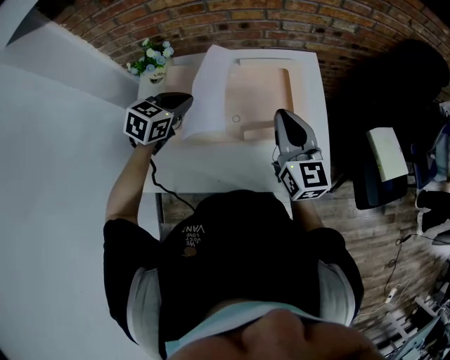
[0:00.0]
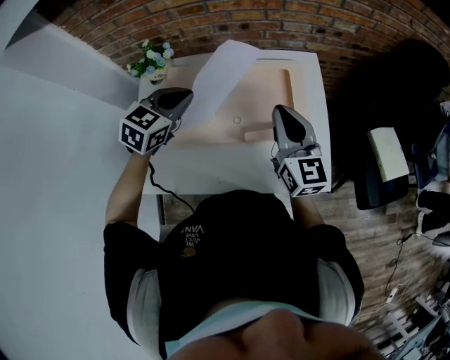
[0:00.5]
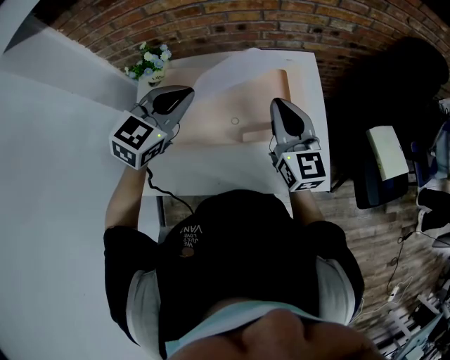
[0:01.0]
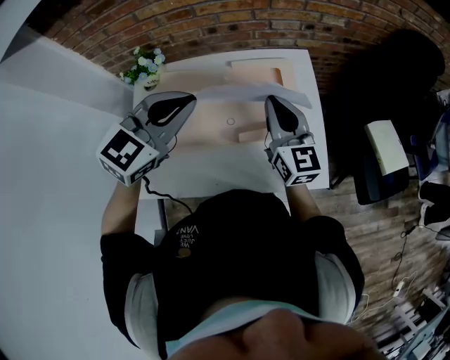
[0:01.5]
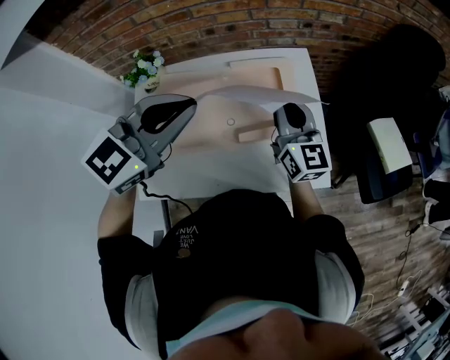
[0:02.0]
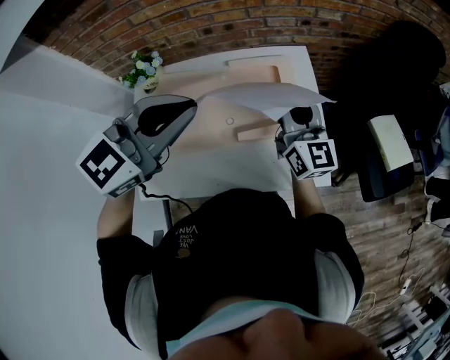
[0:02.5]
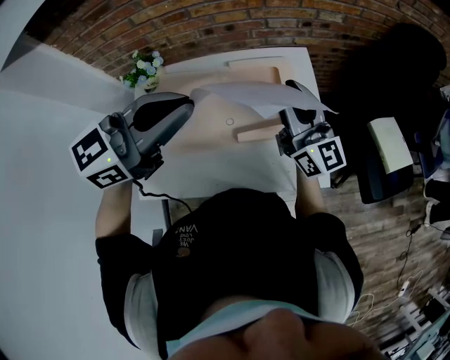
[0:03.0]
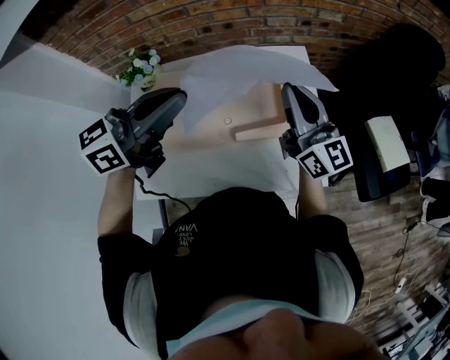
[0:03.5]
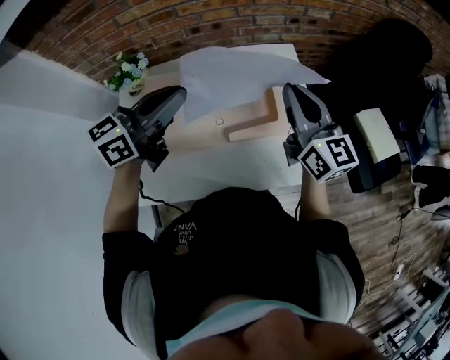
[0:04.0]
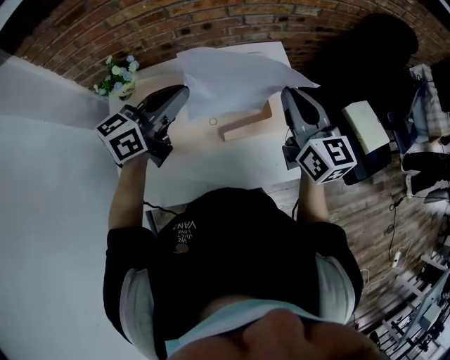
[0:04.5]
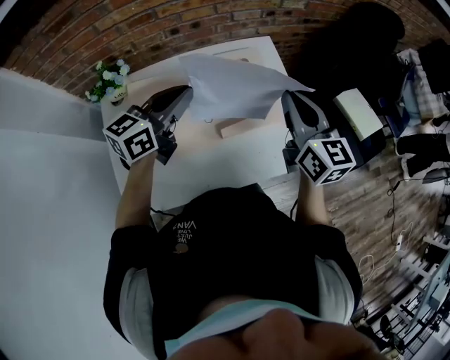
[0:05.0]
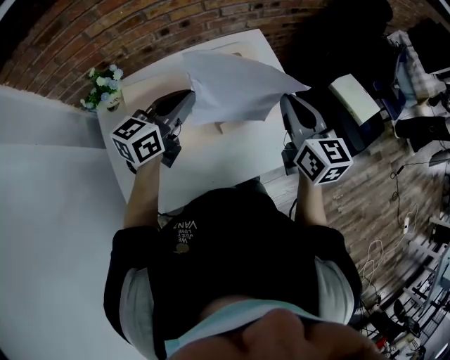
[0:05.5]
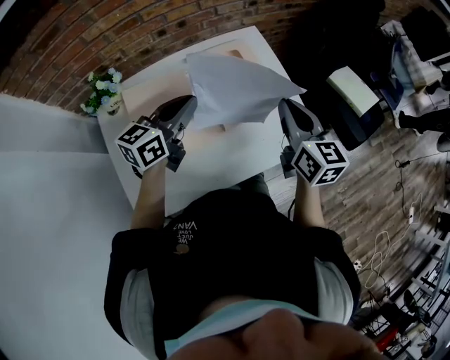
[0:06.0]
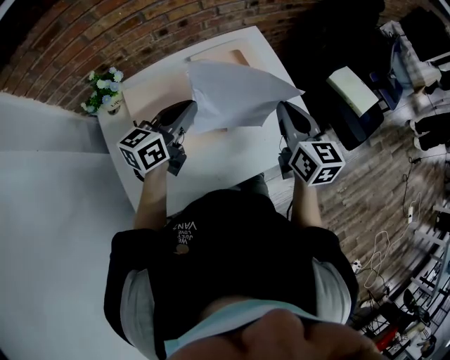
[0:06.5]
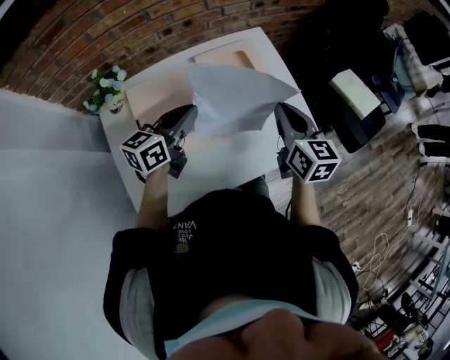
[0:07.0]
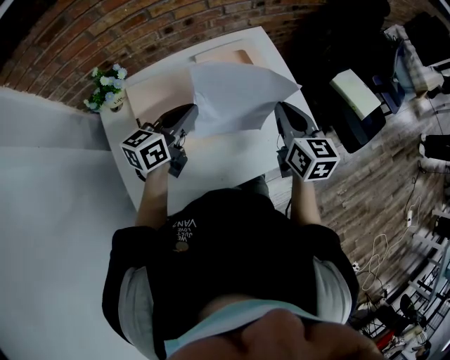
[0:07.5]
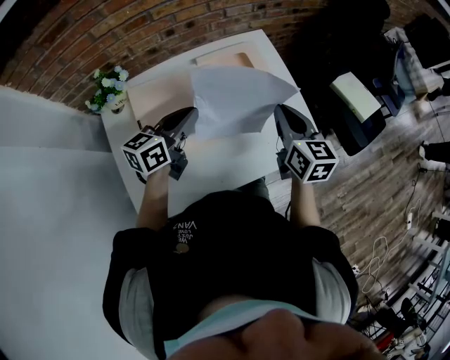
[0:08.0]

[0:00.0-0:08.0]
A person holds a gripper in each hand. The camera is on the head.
0:00.0 to 0:02.0: The right gripper changes place by about 5 cm; the left gripper travels upward and to the right by about 25 cm, and swivels roughly 30 degrees.
0:02.0 to 0:04.0: The right gripper shifts by approximately 5 cm, while the left gripper moves about 10 cm, and turns by roughly 40 degrees.
0:04.0 to 0:06.0: The right gripper moves backward and downward, about 10 cm, and changes its angle by some 30 degrees. Meanwhile the left gripper is displaced downward by roughly 10 cm.
0:06.0 to 0:08.0: The grippers make only small movements.

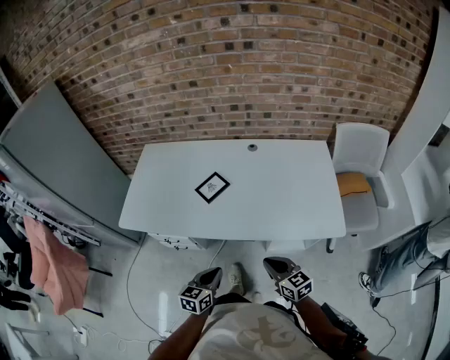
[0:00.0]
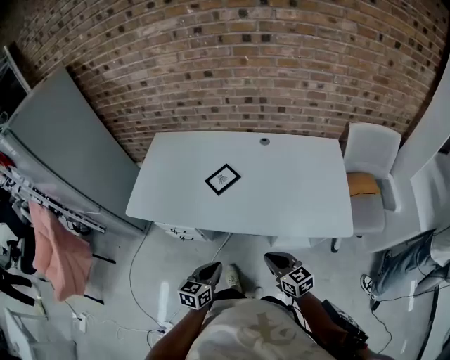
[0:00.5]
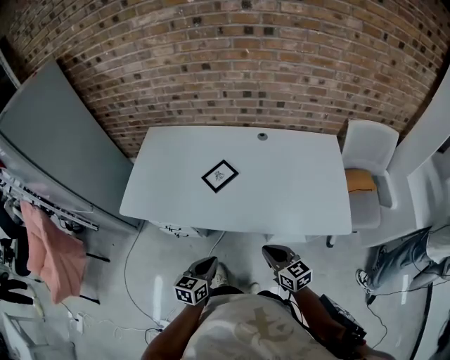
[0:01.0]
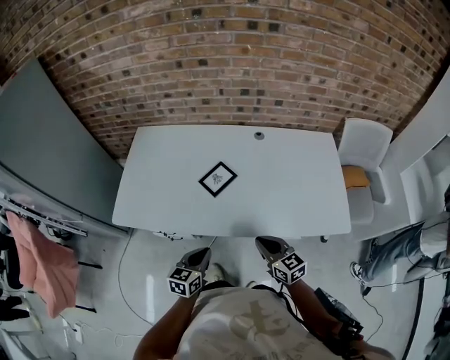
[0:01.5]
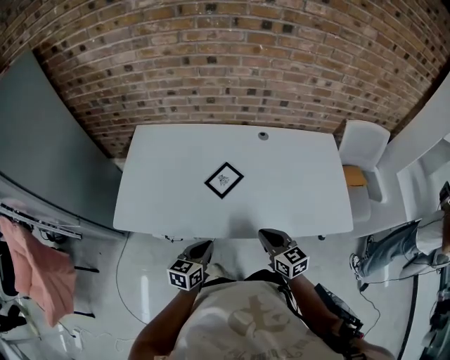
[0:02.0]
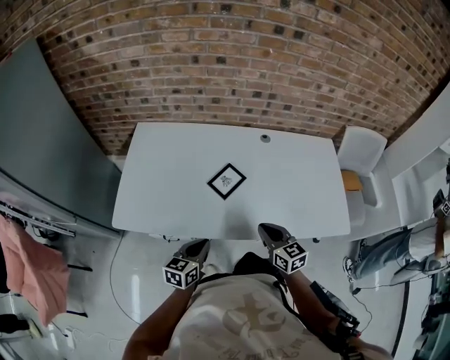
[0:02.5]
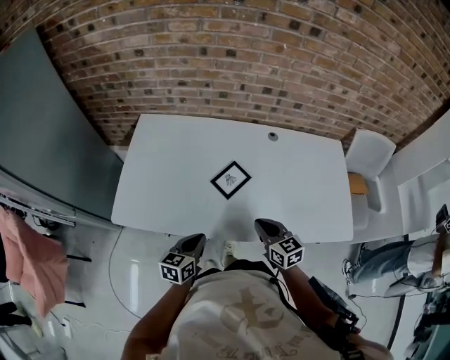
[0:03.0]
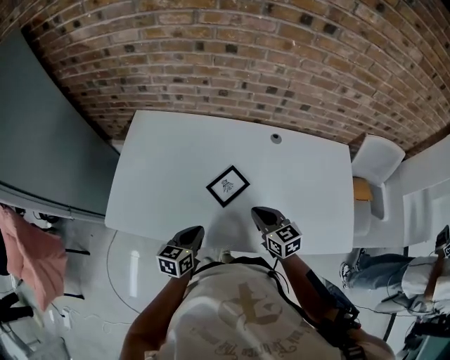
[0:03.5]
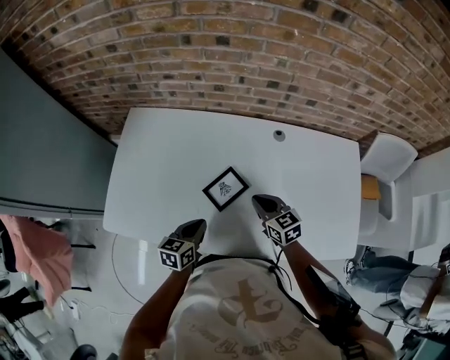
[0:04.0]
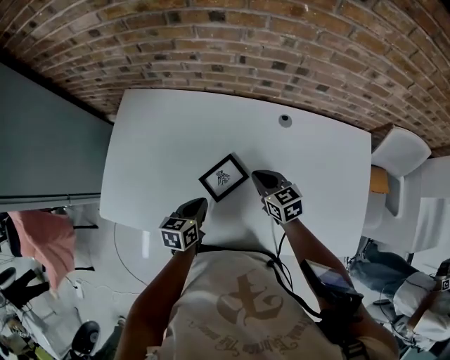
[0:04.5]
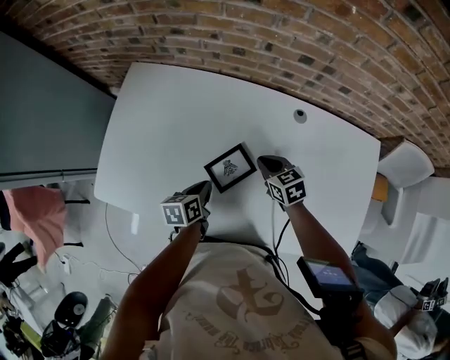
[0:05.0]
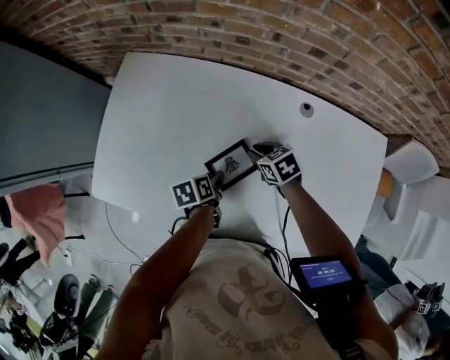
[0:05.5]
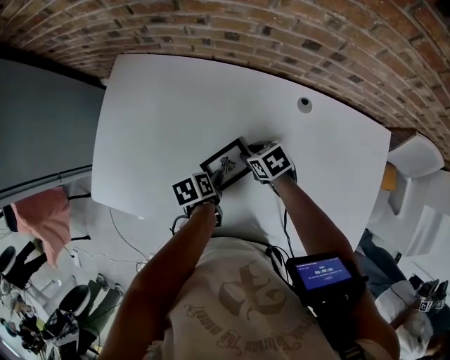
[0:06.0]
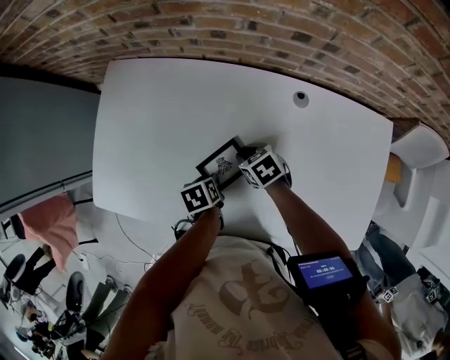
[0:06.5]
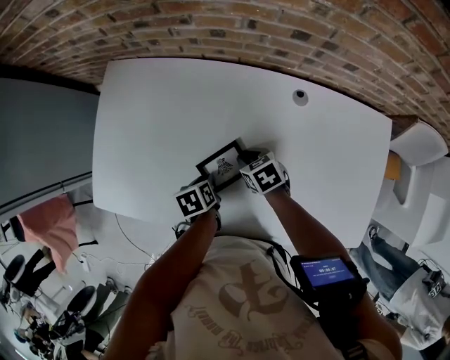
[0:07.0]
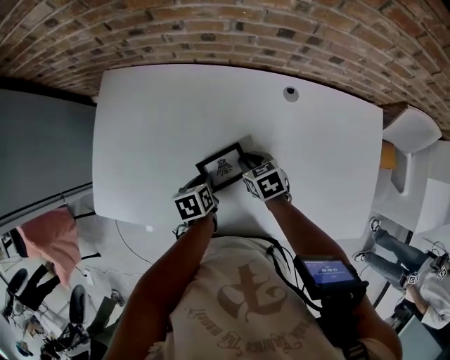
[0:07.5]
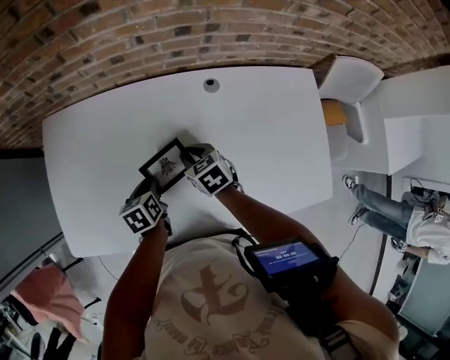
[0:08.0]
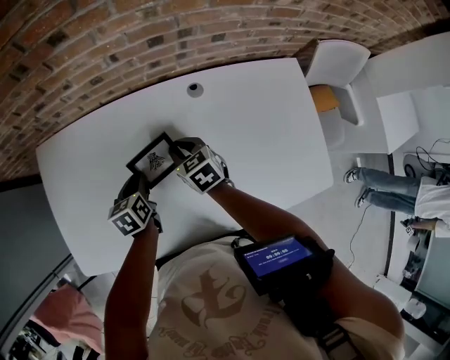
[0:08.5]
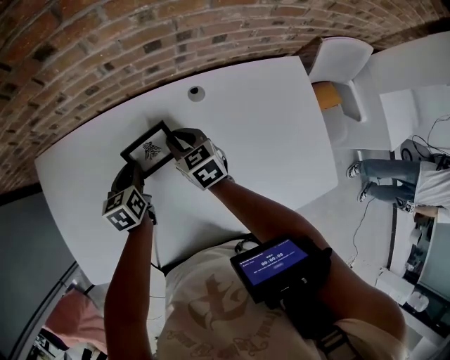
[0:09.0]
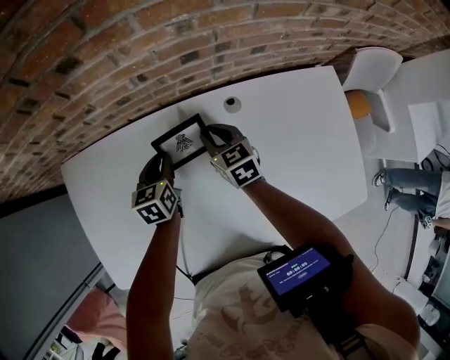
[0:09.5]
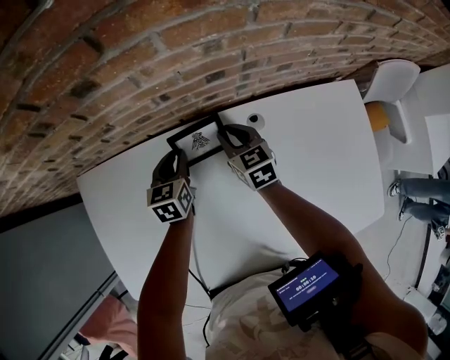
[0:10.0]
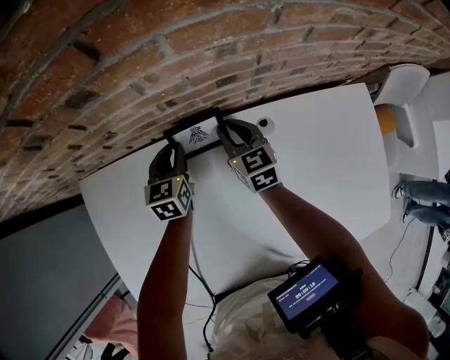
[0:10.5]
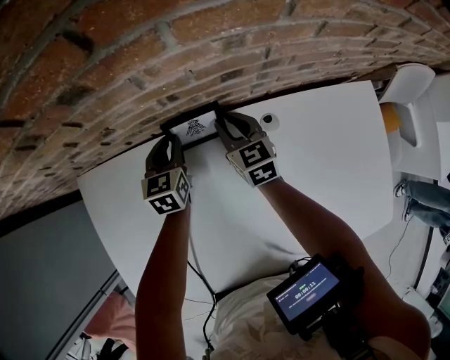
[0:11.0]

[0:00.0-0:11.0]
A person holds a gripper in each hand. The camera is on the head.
0:00.0 to 0:02.0: The grippers both shift forward and to the left by roughly 20 cm.
0:02.0 to 0:03.5: The two grippers go some 15 cm forward.
0:03.5 to 0:05.5: The left gripper heads forward, downward and to the right, covering roughly 20 cm, twists some 40 degrees counterclockwise, seen from behind, and opens up. Meanwhile the right gripper shifts roughly 20 cm forward and downward, and changes its angle by some 40 degrees.
0:05.5 to 0:07.5: The left gripper closes its fingers.
0:07.5 to 0:09.0: Both grippers move forward and upward, about 15 cm. The left gripper swivels about 30 degrees. The right gripper rotates approximately 30 degrees.
0:09.0 to 0:11.0: Both grippers move forward, roughly 20 cm.

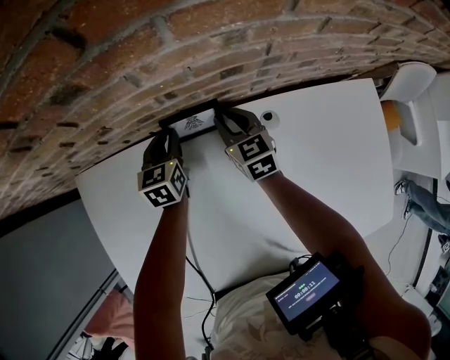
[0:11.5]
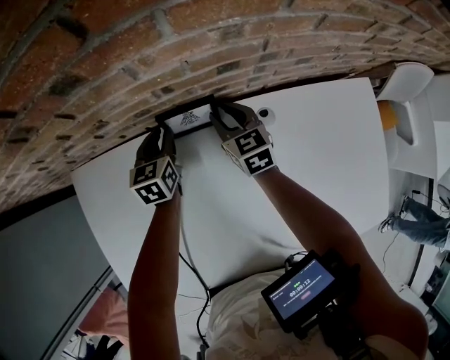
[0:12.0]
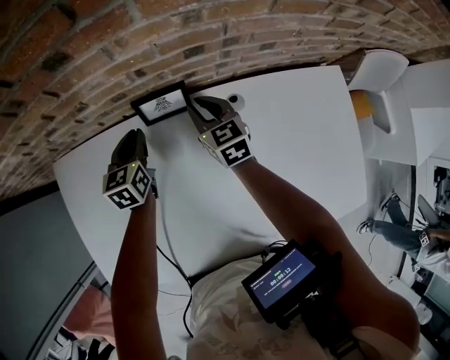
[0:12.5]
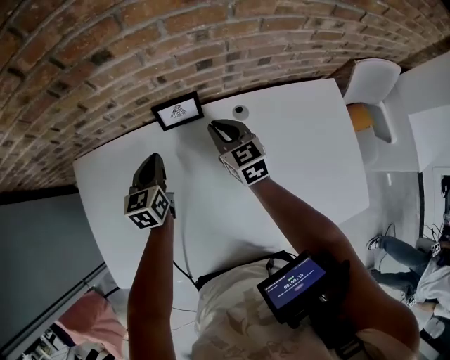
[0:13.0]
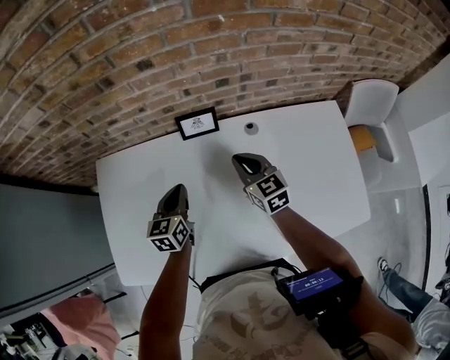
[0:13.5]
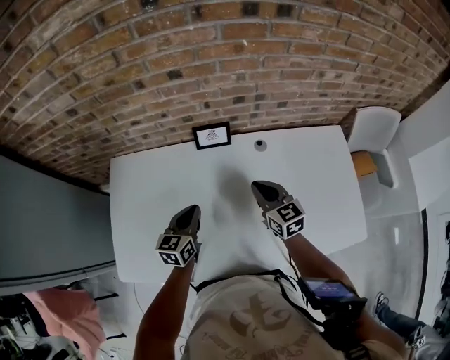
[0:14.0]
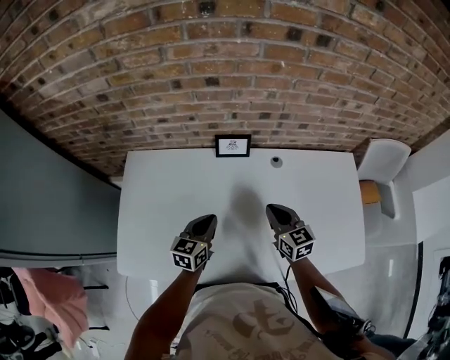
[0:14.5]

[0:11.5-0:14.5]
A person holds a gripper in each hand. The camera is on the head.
0:11.5 to 0:13.0: The grippers both shift backward and upward by approximately 15 cm.
0:13.0 to 0:14.5: Both grippers move backward, roughly 20 cm.

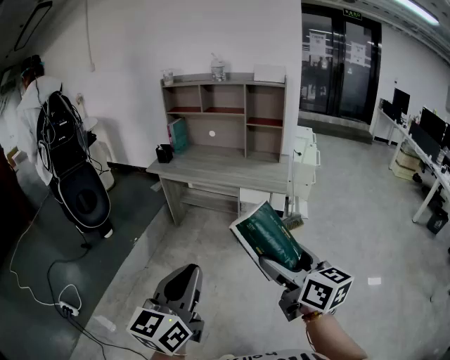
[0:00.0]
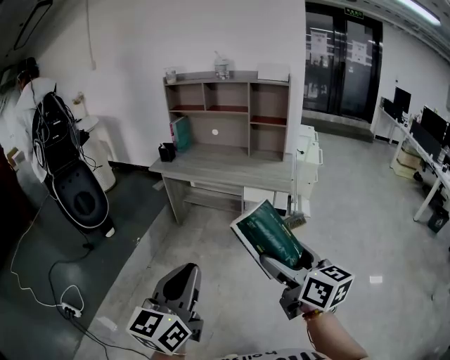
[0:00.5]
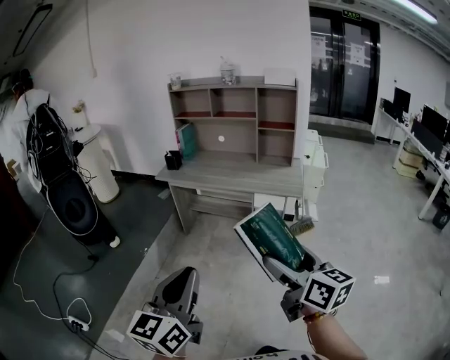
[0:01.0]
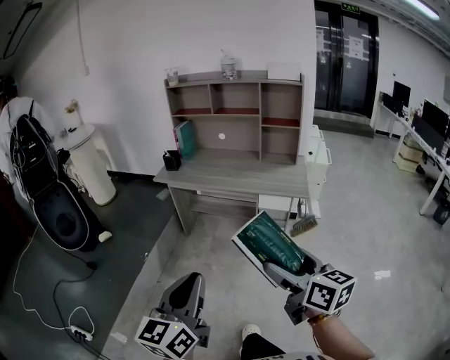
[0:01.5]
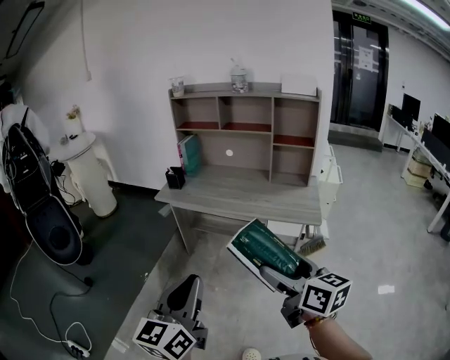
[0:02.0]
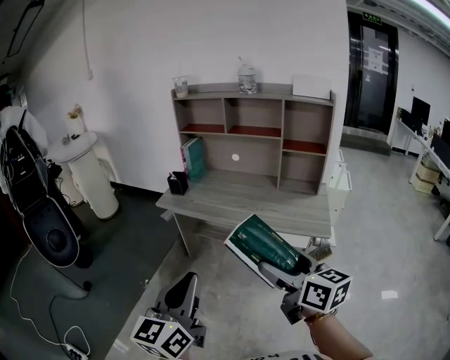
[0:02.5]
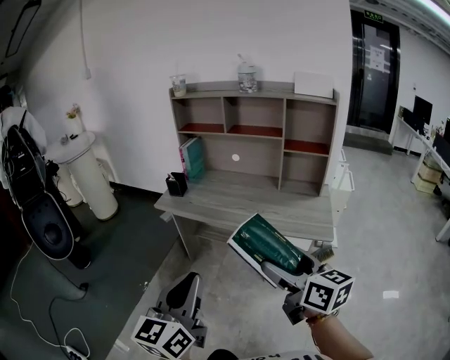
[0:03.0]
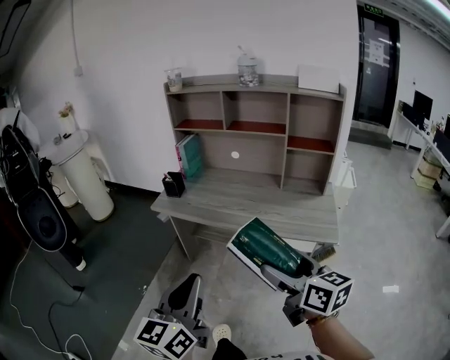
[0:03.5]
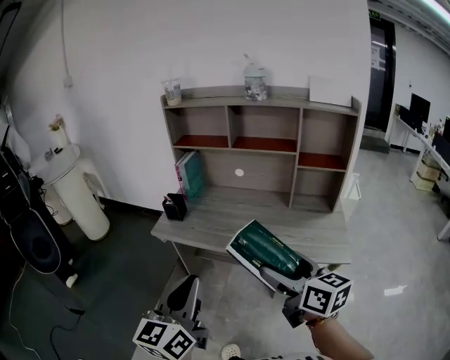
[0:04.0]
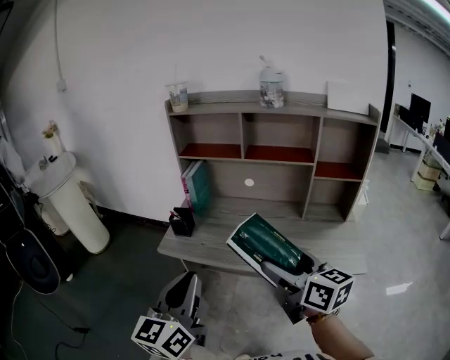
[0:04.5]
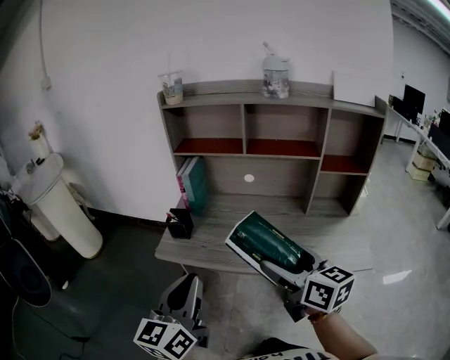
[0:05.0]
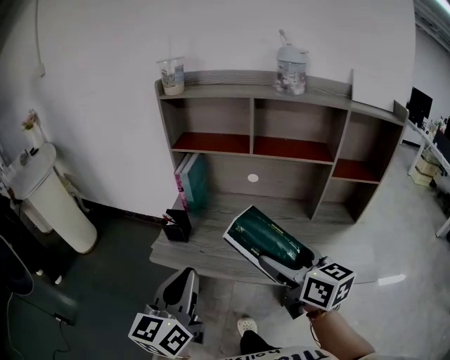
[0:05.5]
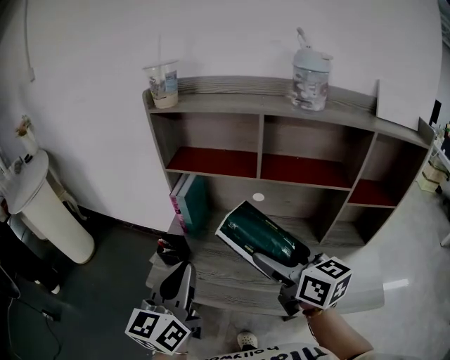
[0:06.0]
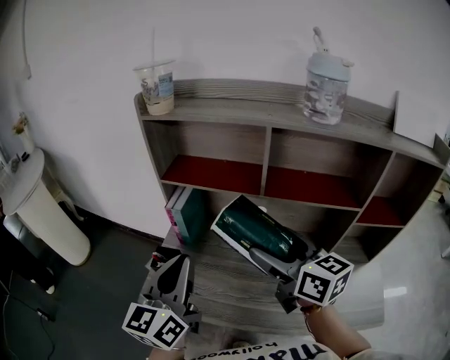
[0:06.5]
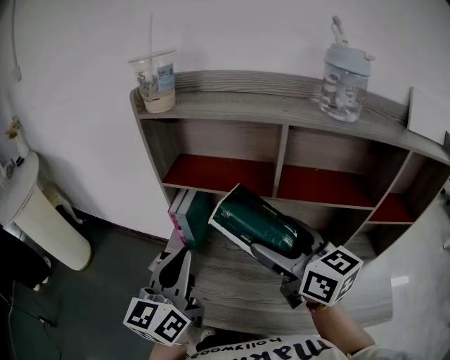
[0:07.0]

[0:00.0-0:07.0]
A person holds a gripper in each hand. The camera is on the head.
0:00.0 to 0:02.0: The grippers both shift forward and to the left by about 25 cm.
0:02.0 to 0:03.5: Both grippers move forward, about 15 cm.
0:03.5 to 0:05.0: Both grippers move forward and to the left, roughly 30 cm.
0:05.0 to 0:07.0: The two grippers go roughly 30 cm forward.
